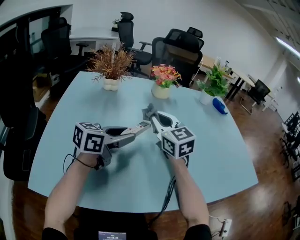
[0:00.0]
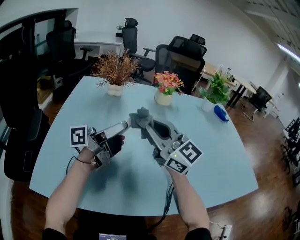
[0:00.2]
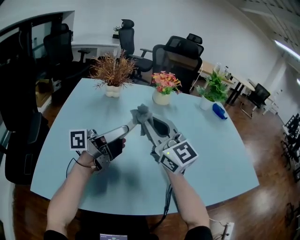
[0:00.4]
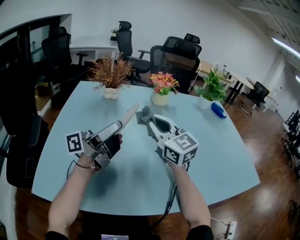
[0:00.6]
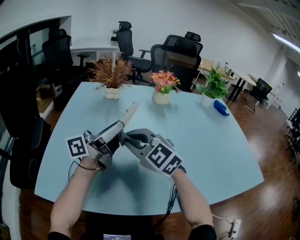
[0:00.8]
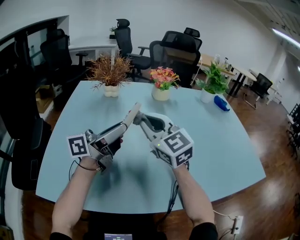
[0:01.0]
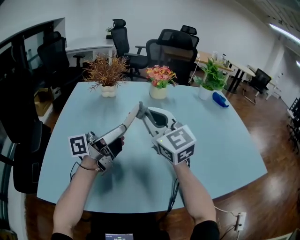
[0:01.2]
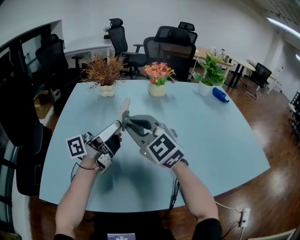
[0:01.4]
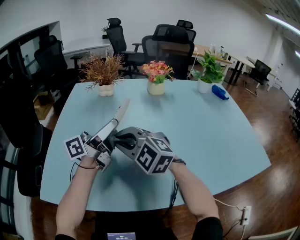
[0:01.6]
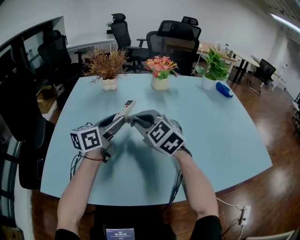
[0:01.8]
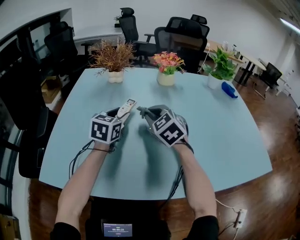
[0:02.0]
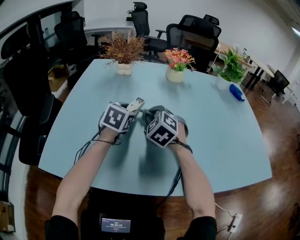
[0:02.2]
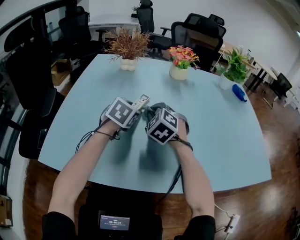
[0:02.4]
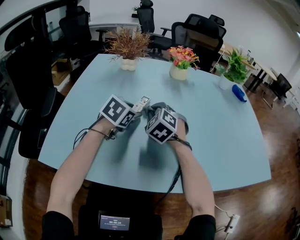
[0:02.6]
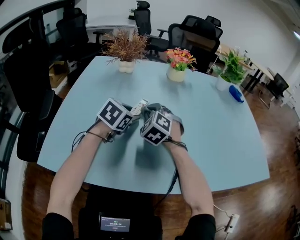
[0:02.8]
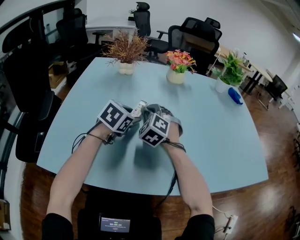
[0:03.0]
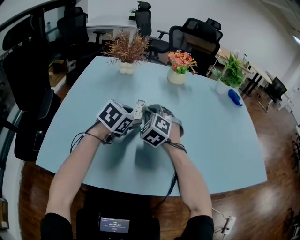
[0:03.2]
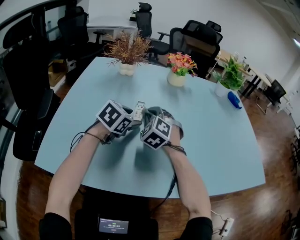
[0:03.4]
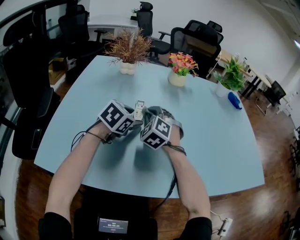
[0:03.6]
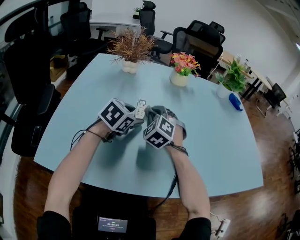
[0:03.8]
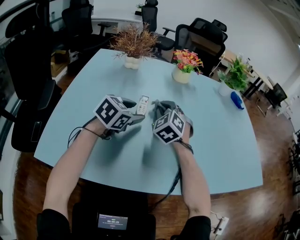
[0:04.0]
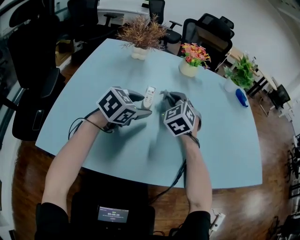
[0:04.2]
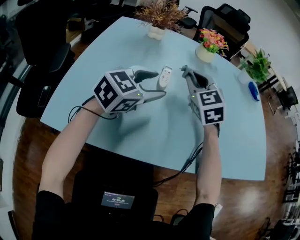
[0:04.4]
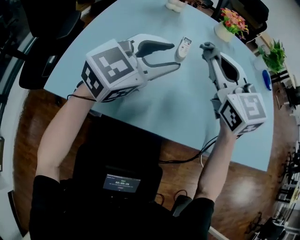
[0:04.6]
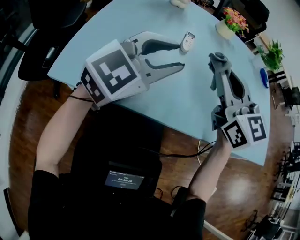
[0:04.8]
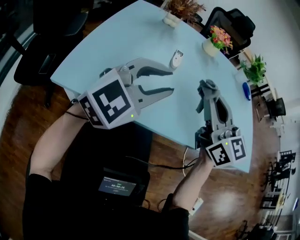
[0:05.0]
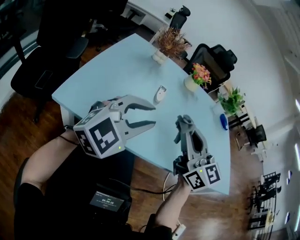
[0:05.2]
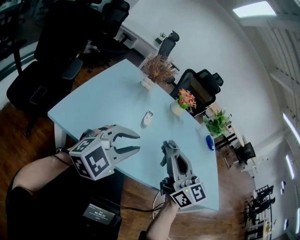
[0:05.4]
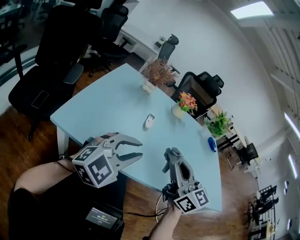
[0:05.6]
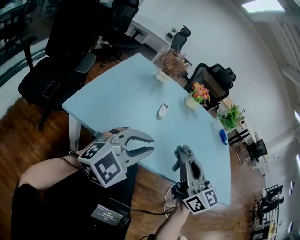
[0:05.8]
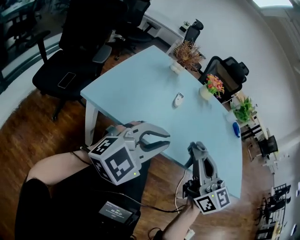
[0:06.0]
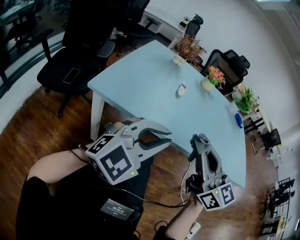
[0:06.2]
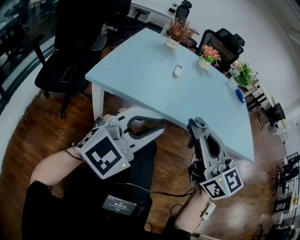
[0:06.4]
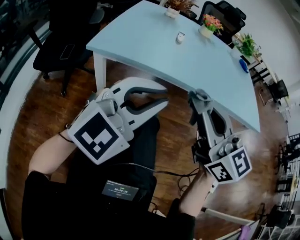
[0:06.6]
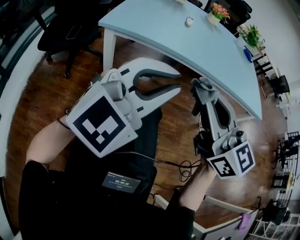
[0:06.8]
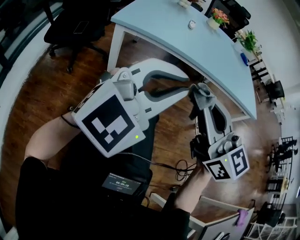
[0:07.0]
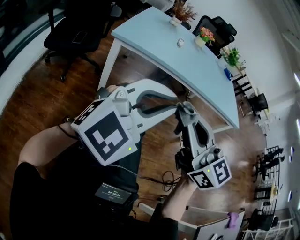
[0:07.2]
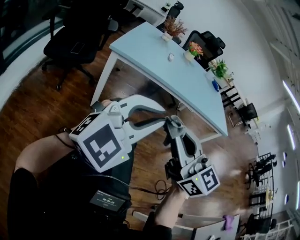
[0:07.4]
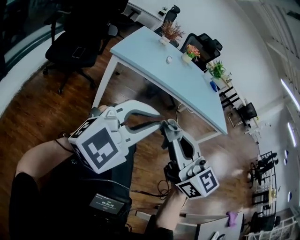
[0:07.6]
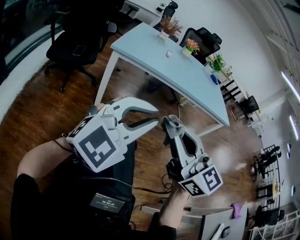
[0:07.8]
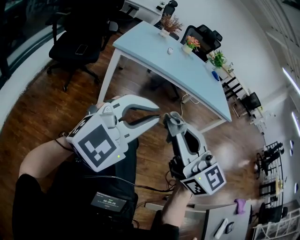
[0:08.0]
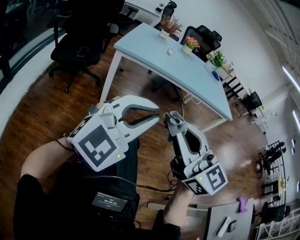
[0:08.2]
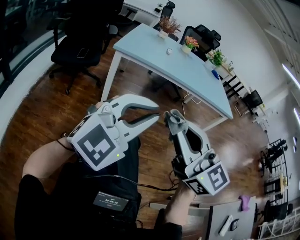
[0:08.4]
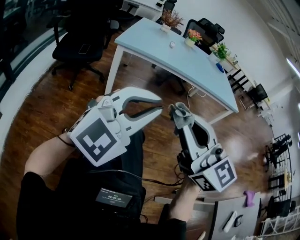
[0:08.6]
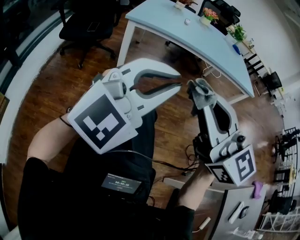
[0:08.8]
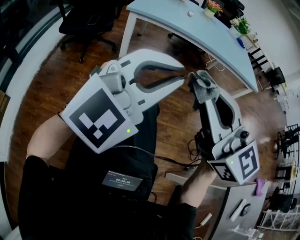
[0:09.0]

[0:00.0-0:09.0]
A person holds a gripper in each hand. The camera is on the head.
0:00.0 to 0:01.6: The right gripper moves forward and backward over roughly 15 cm, changing direction 4 times, and rotates roughly 40 degrees; the left gripper shifts roughly 10 cm upward, and tips its fingers upward by approximately 30 degrees.
0:01.6 to 0:03.0: The left gripper shifts some 15 cm downward, and tilts its fingers some 60 degrees downward. Meanwhile the right gripper heads forward, downward and to the right, covering about 15 cm, and turns by some 40 degrees.
0:03.0 to 0:04.4: The right gripper heads upward, covering some 10 cm, and turns by roughly 20 degrees. Meanwhile the left gripper shifts about 10 cm backward and upward, and changes its angle by approximately 30 degrees.
0:04.4 to 0:06.0: Both grippers travel together backward, roughly 40 cm. The left gripper changes its angle by roughly 30 degrees, and closes; the right gripper changes its angle by approximately 40 degrees.
0:06.0 to 0:07.6: The pair of grippers is taken backward, some 60 cm.
0:07.6 to 0:09.0: Both grippers travel together backward, approximately 10 cm.

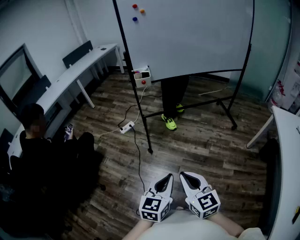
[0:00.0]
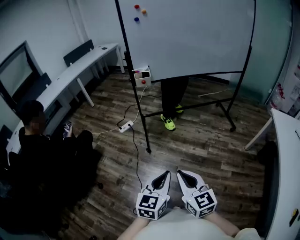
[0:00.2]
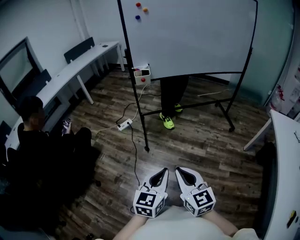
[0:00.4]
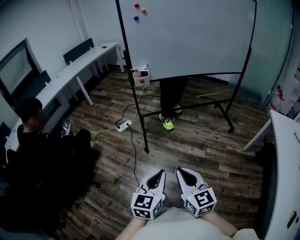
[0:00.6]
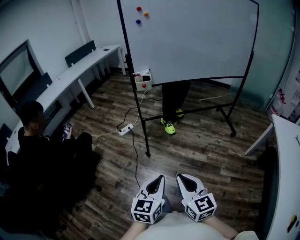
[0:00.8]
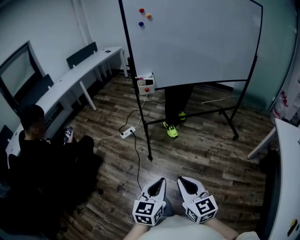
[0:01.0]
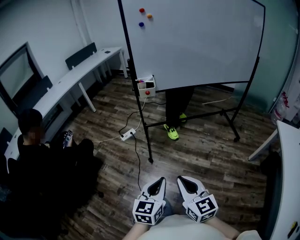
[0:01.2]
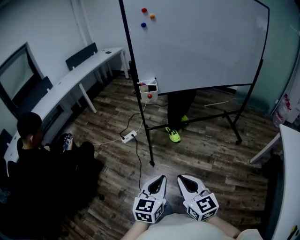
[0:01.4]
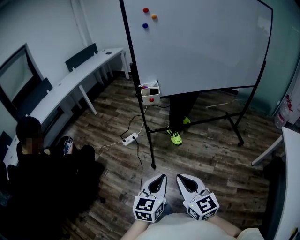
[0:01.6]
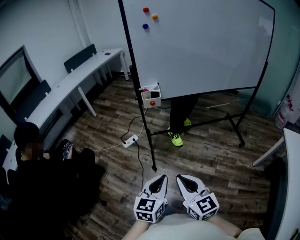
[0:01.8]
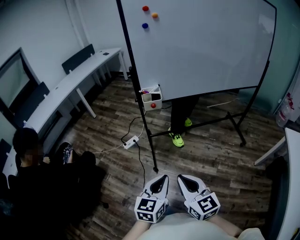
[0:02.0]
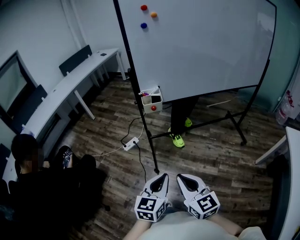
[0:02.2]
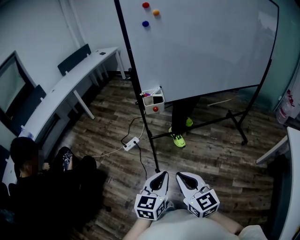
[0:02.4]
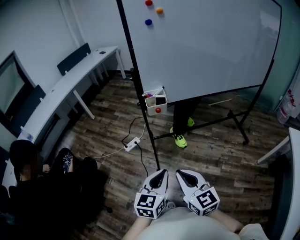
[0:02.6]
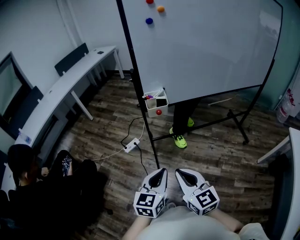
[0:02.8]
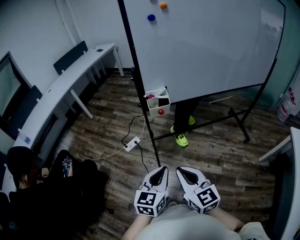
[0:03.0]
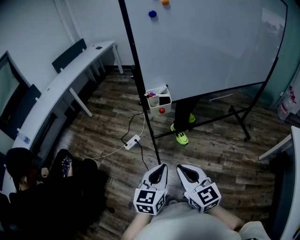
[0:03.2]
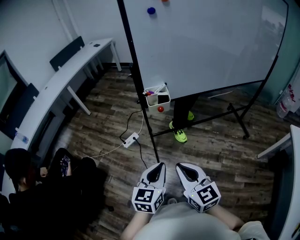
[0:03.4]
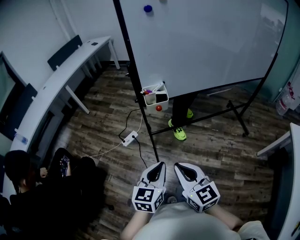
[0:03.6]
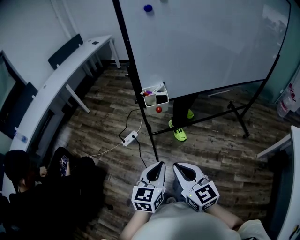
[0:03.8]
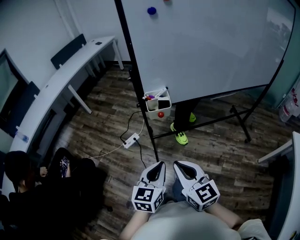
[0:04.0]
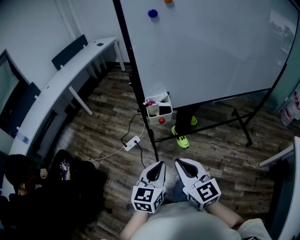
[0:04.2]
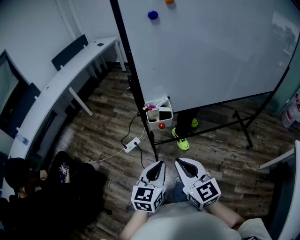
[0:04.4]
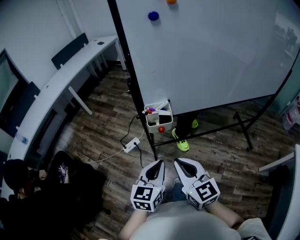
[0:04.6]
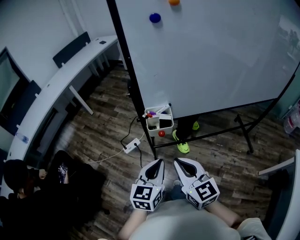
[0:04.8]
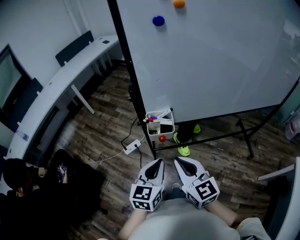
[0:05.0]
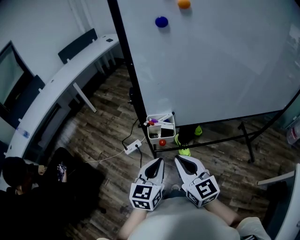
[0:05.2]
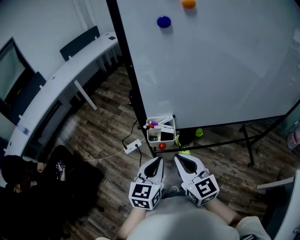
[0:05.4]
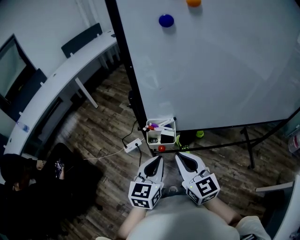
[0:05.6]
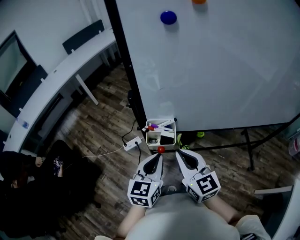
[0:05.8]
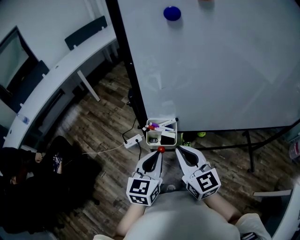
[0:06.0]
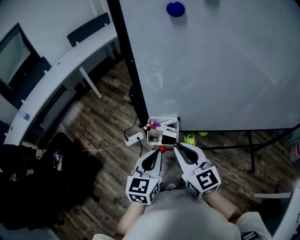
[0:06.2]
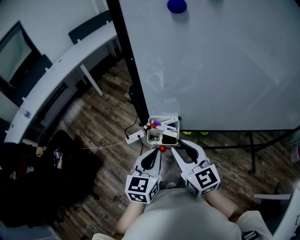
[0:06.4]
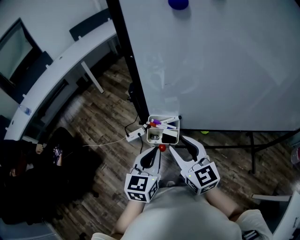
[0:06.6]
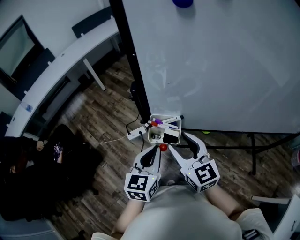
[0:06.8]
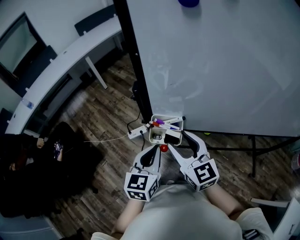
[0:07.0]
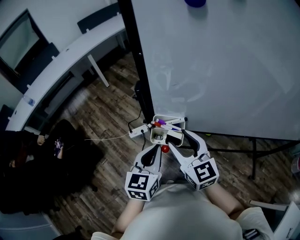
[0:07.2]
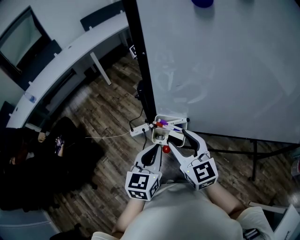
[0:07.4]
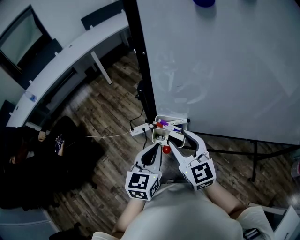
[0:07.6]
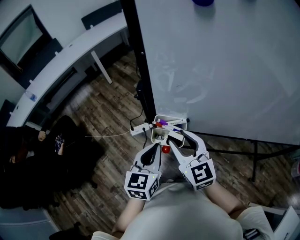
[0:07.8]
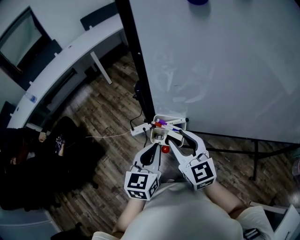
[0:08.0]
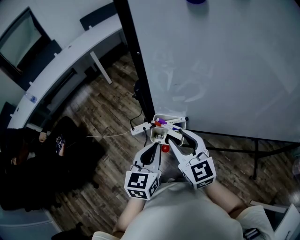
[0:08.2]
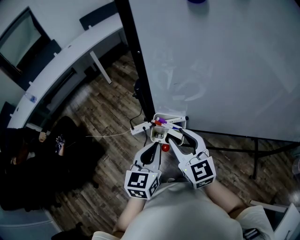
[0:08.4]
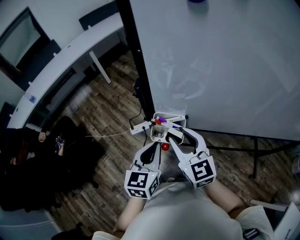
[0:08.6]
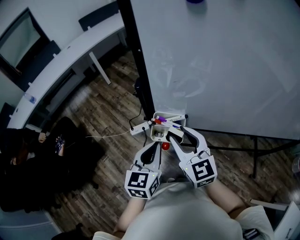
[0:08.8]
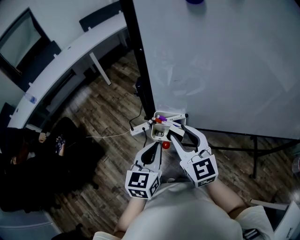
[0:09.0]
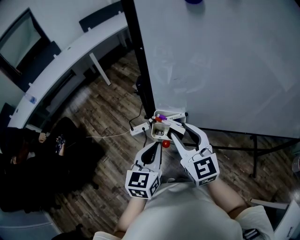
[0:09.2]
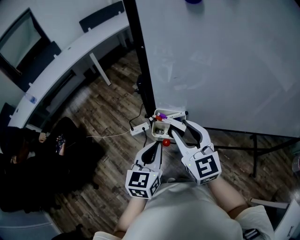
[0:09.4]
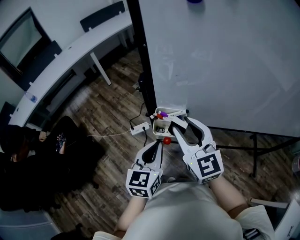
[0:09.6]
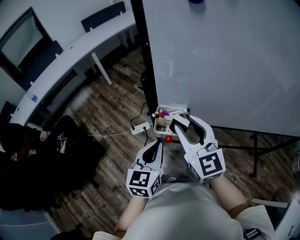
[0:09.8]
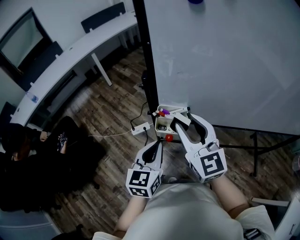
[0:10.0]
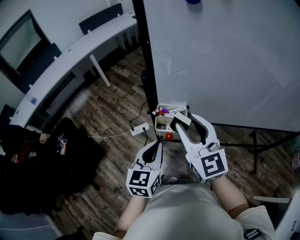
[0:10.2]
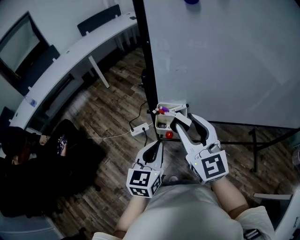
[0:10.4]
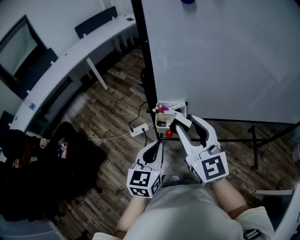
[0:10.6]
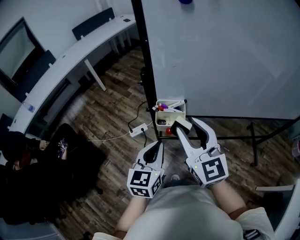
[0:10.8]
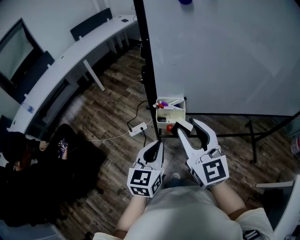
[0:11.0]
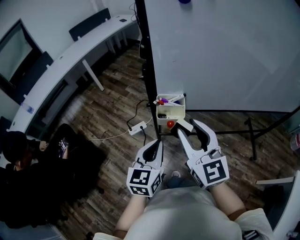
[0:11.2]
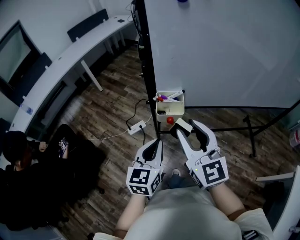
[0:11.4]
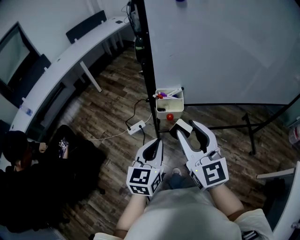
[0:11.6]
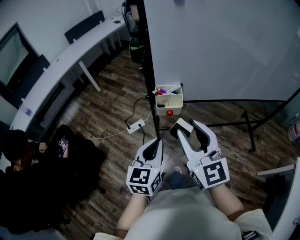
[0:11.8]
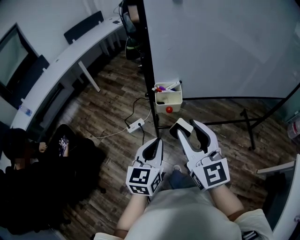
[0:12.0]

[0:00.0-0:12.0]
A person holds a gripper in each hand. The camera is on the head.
0:00.0 to 0:01.6: The two grippers go approximately 15 cm forward.
0:01.6 to 0:03.0: The right gripper heads forward and to the left, covering about 20 cm, while the left gripper heads forward, covering approximately 20 cm.
0:03.0 to 0:04.4: Both grippers move forward, roughly 15 cm.
0:04.4 to 0:06.0: Both grippers travel together forward, some 20 cm.
0:06.0 to 0:07.6: The right gripper moves forward, about 5 cm, and opens.
0:07.6 to 0:09.0: The grippers move only a little.
0:09.0 to 0:10.4: The right gripper goes about 5 cm upward.
0:10.4 to 0:12.0: Both grippers move backward, about 15 cm.

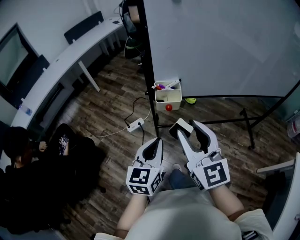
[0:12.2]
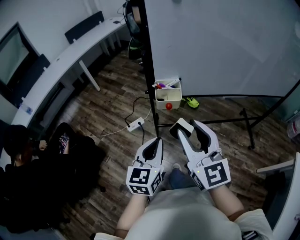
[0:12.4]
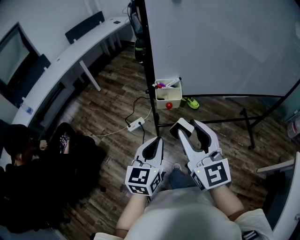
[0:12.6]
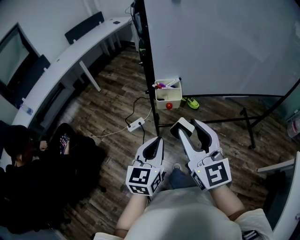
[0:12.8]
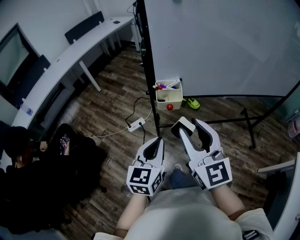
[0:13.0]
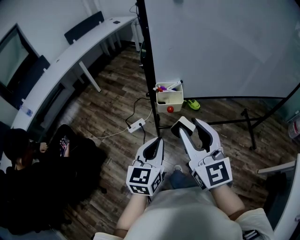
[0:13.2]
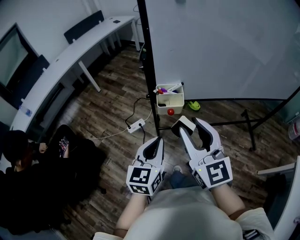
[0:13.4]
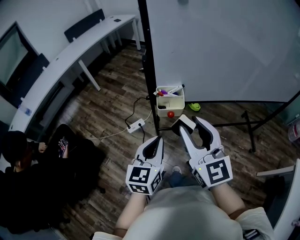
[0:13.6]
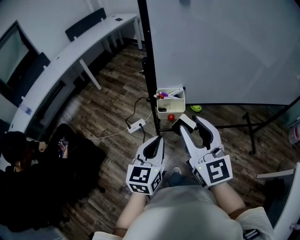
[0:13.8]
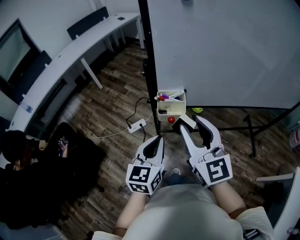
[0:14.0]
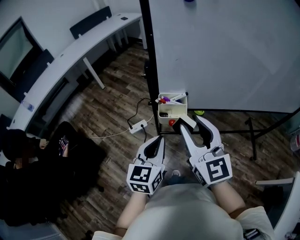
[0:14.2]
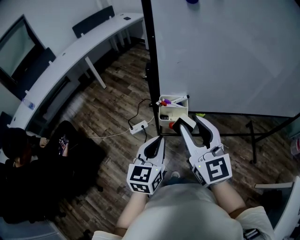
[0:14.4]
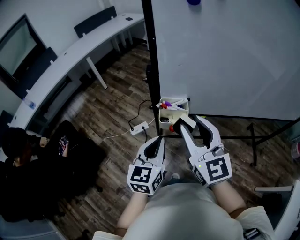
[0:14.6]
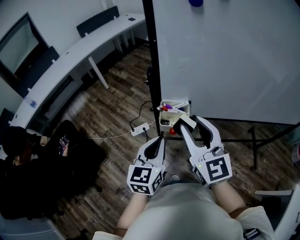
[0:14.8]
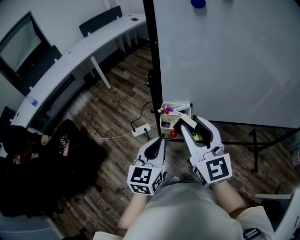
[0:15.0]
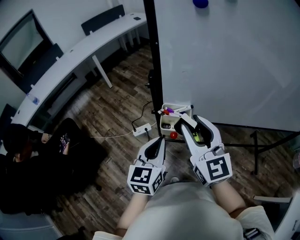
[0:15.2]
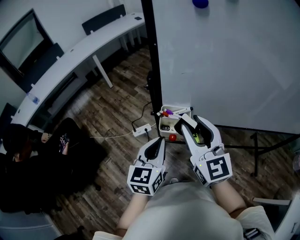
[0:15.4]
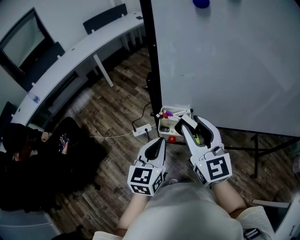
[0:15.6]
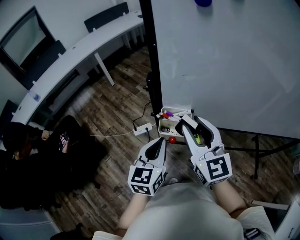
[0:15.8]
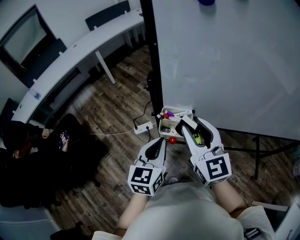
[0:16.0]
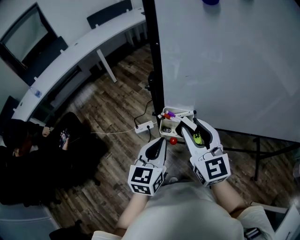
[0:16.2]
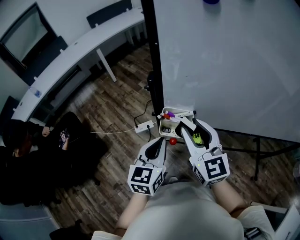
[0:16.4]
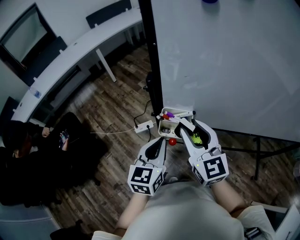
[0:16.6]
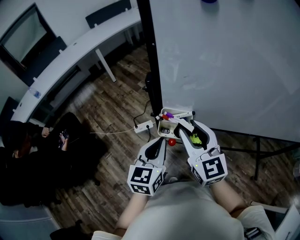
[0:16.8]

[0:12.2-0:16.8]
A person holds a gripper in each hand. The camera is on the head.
0:12.2 to 0:13.8: The grippers both shift forward by approximately 5 cm.
0:13.8 to 0:15.2: The grippers both shift forward by approximately 10 cm.
0:15.2 to 0:16.8: The right gripper heads downward, covering roughly 5 cm.
